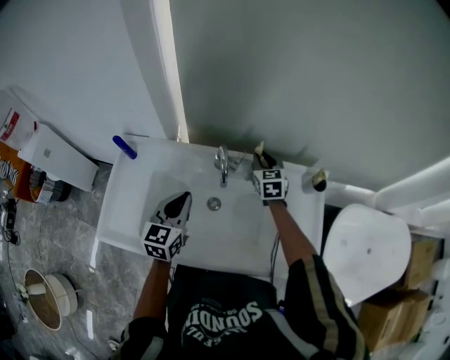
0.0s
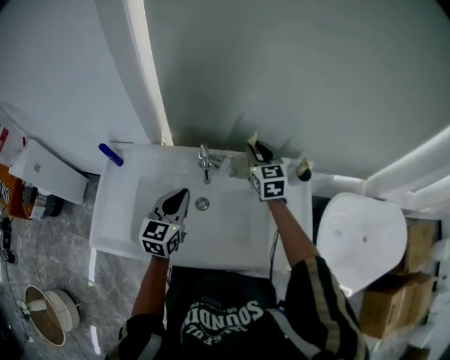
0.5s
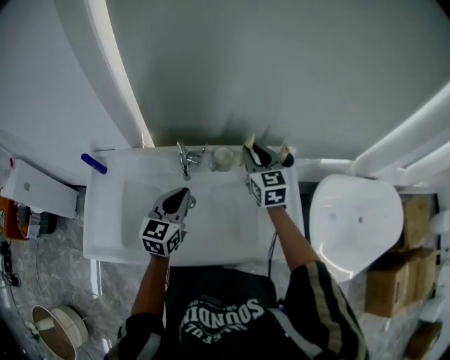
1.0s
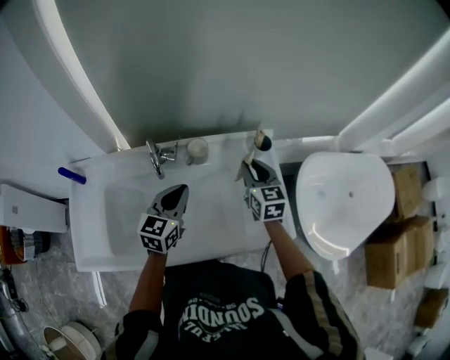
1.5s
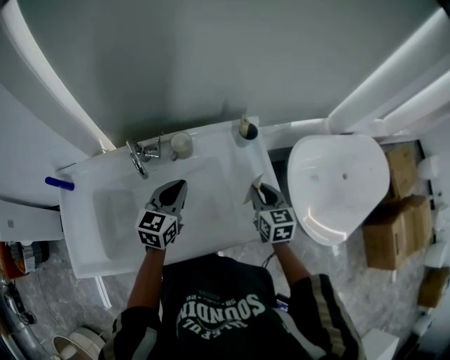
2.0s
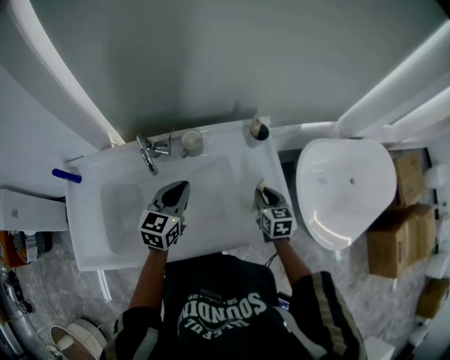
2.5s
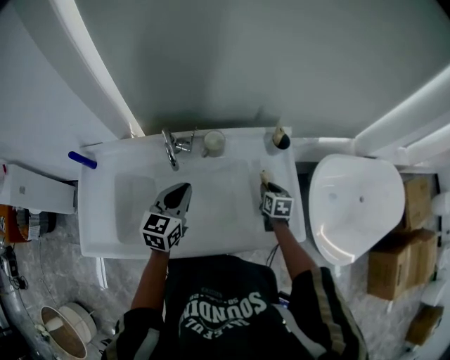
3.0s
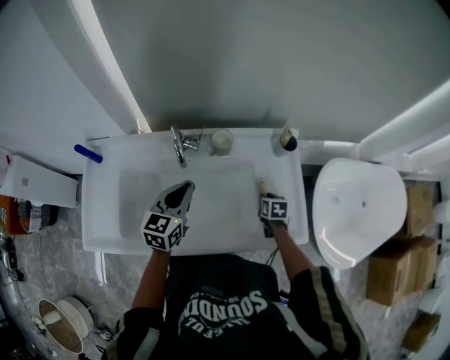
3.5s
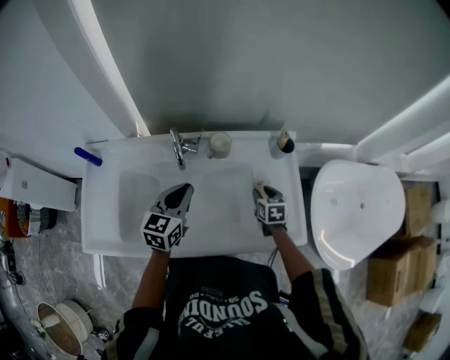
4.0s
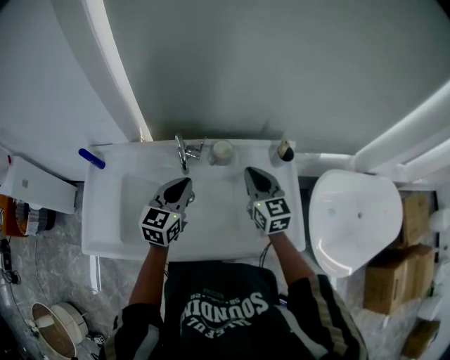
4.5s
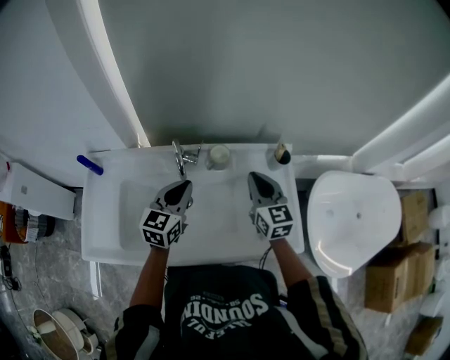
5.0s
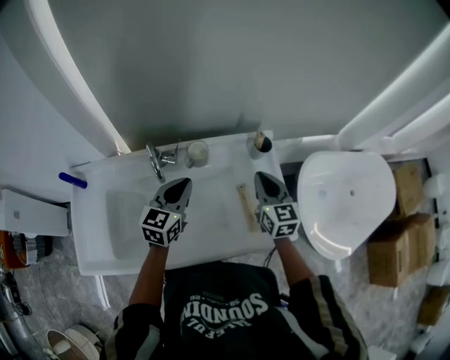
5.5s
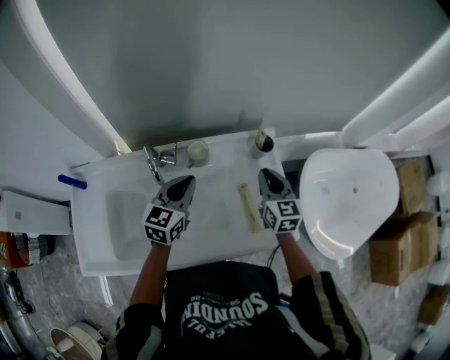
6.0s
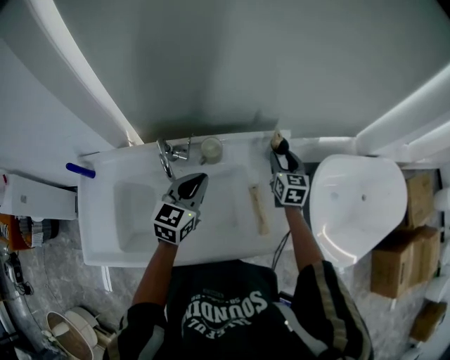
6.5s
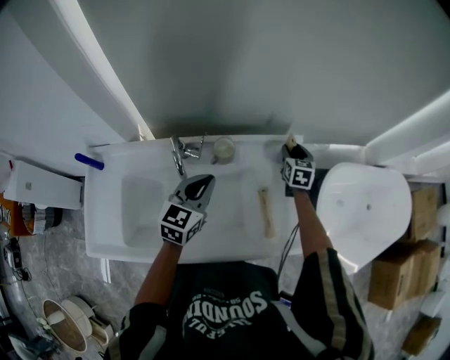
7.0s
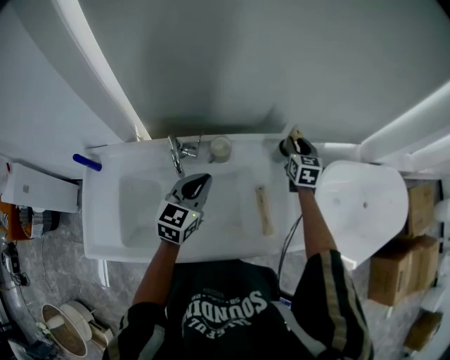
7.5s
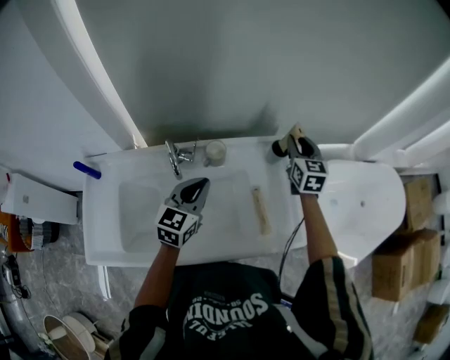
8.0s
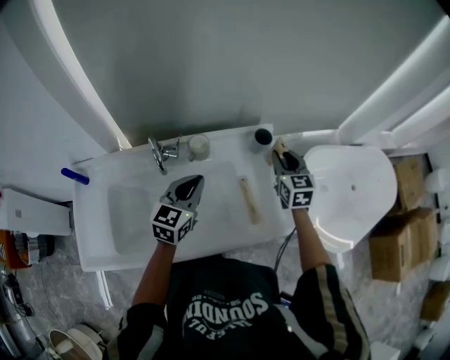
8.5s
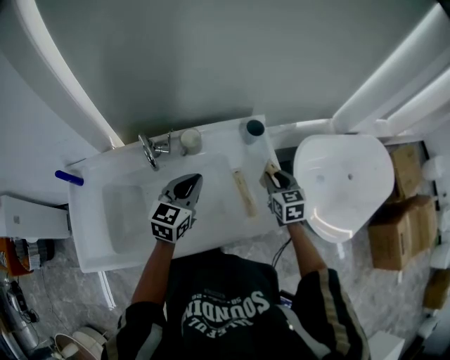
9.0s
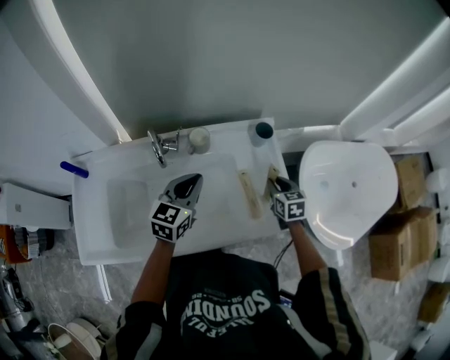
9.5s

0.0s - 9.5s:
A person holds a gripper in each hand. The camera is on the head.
0.0s - 2.0s: The right gripper shifts roughly 35 cm to the right and backward, and turns by about 20 degrees. The left gripper heads to the right, covering some 20 cm, and swivels roughly 30 degrees.
2.0s - 4.0s: The left gripper shifts some 10 cm to the left; the right gripper travels downward and to the left by about 15 cm.
4.0s - 5.5s: The left gripper goes approximately 5 cm to the right; the right gripper is displaced upward by approximately 20 cm, points its fingers roughly 30 degrees further upward, and closes.
5.5s - 7.5s: The right gripper shifts about 20 cm forward, and opens up.
7.5s - 9.5s: The right gripper heads backward and downward, covering approximately 20 cm.

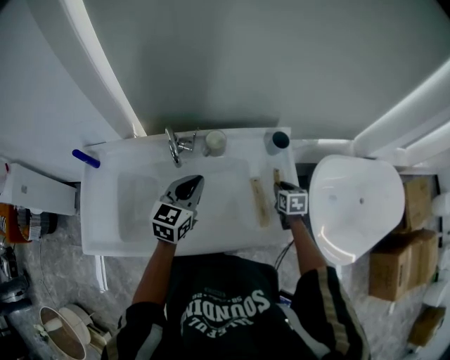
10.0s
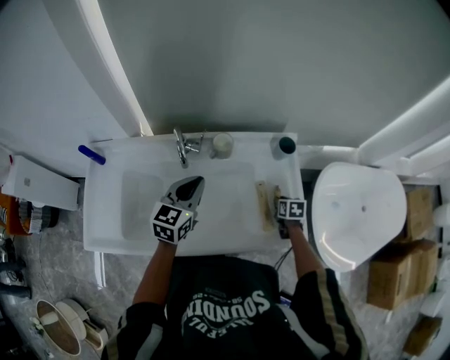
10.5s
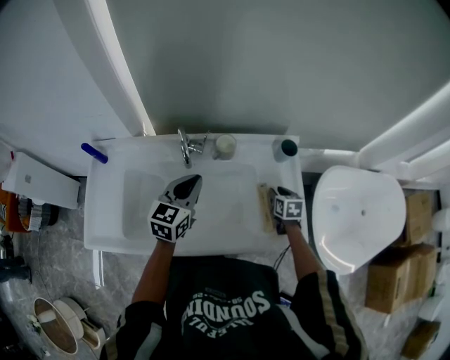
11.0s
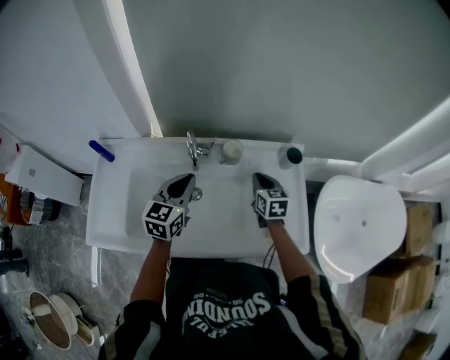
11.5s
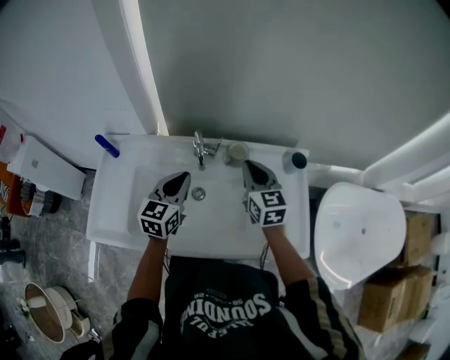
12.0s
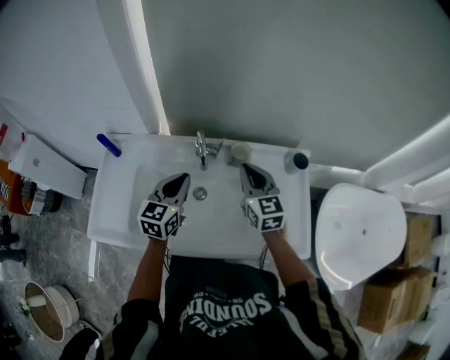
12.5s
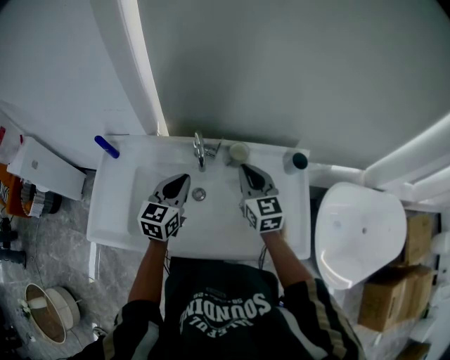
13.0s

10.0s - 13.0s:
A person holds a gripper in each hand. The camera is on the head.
10.0s - 11.5s: The right gripper goes about 20 cm to the left and upward. The left gripper shifts roughly 10 cm to the left.
11.5s - 13.0s: The right gripper goes approximately 15 cm upward and to the left, and rotates roughly 20 degrees.

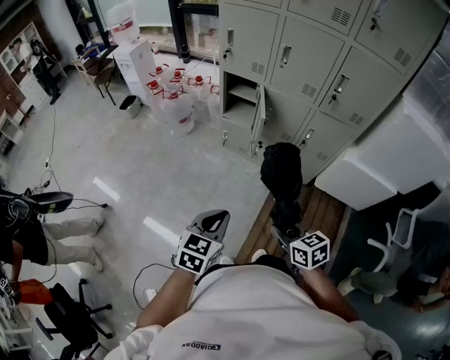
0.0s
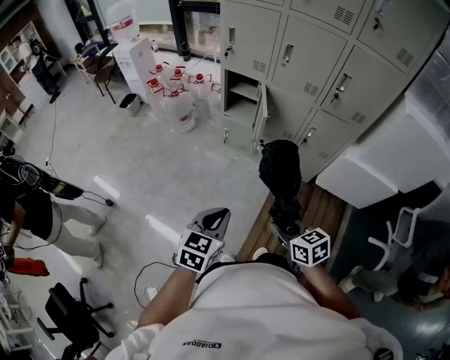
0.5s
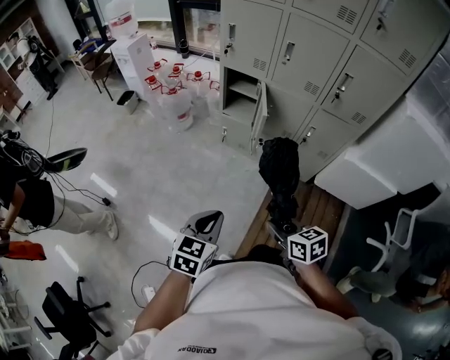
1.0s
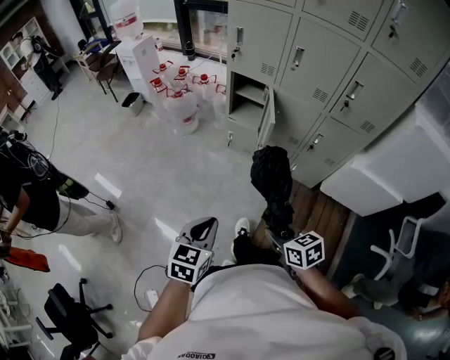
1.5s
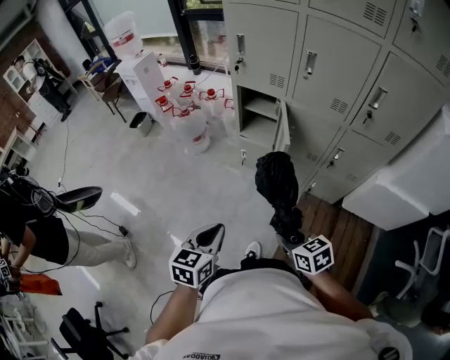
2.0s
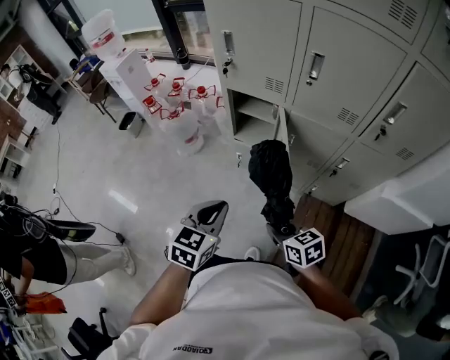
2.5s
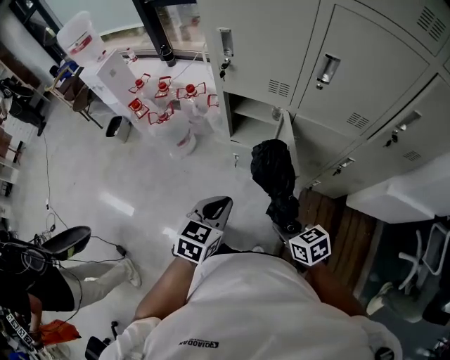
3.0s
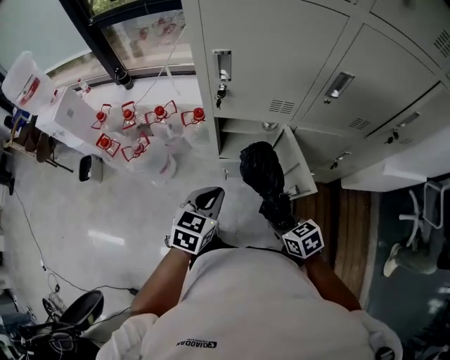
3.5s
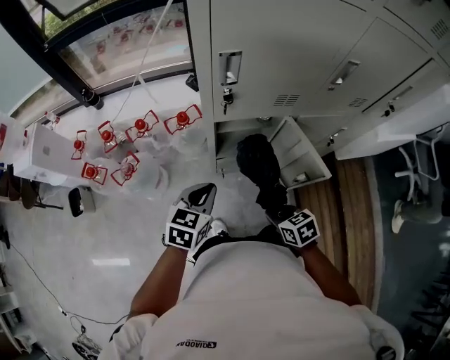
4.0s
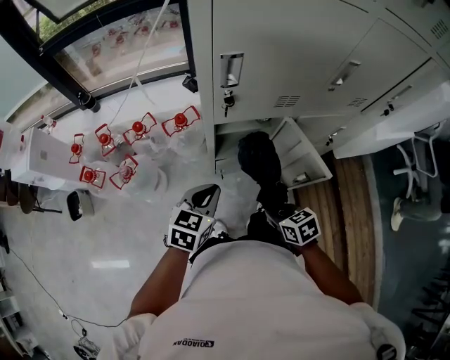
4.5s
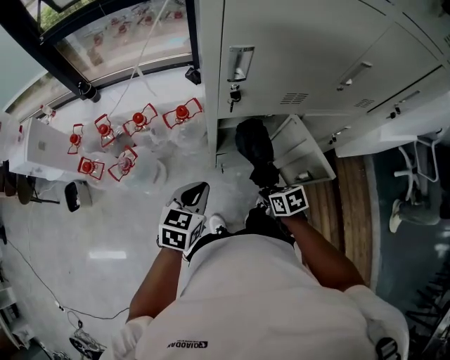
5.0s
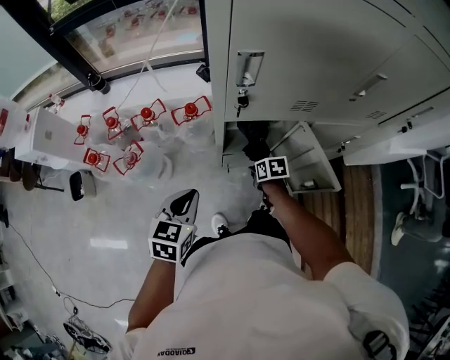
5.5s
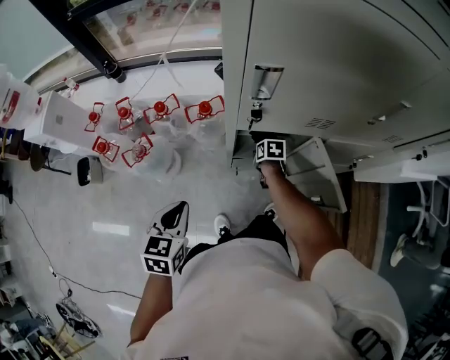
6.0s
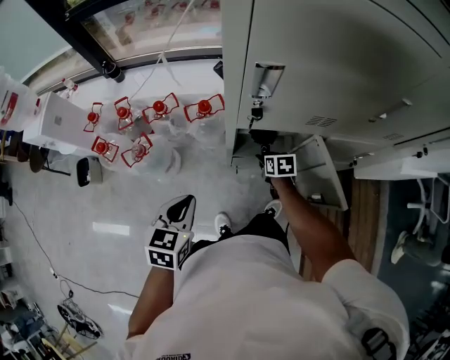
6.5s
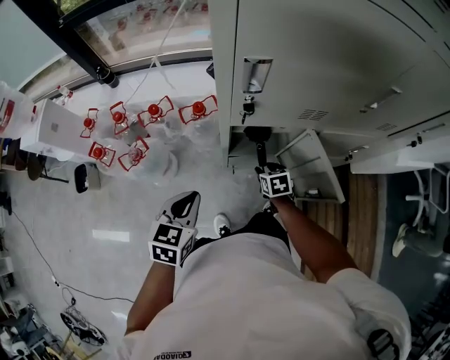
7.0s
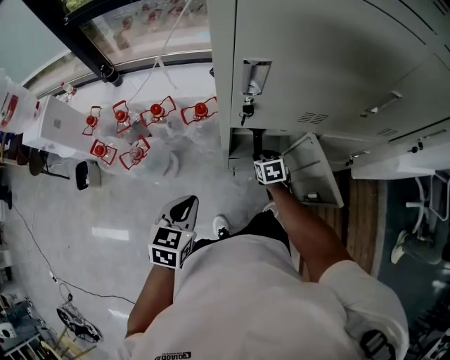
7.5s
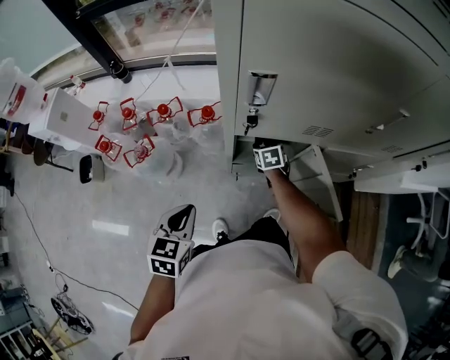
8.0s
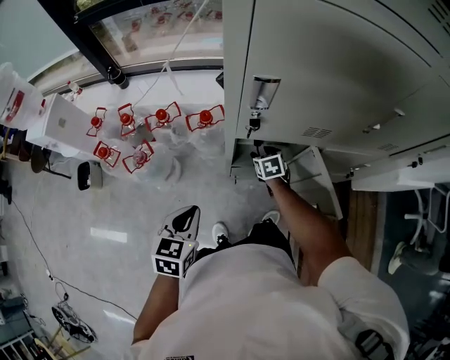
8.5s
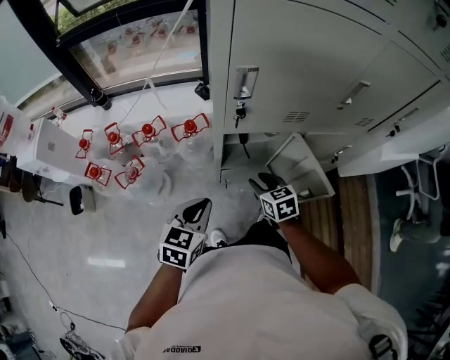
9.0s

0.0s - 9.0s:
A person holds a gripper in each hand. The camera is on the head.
0.0s - 2.0s: The grippers both shift forward and downward by roughly 20 cm.
2.0s - 4.5s: The pair of grippers is taken about 50 cm. The left gripper turns by approximately 50 degrees. Meanwhile the right gripper rotates roughly 40 degrees.
4.5s - 7.0s: The left gripper goes some 5 cm to the left. The right gripper shifts about 25 cm forward and downward, and opens.
7.0s - 9.0s: The right gripper moves upward, about 15 cm, and travels forward and back again, about 15 cm each way.

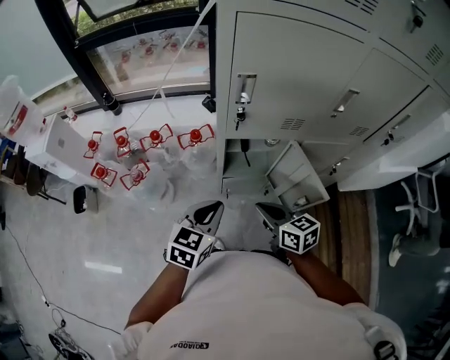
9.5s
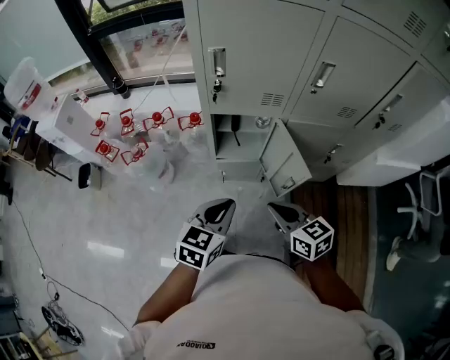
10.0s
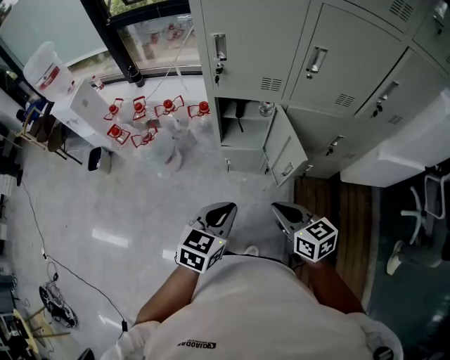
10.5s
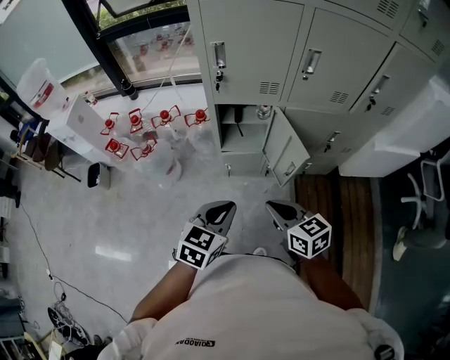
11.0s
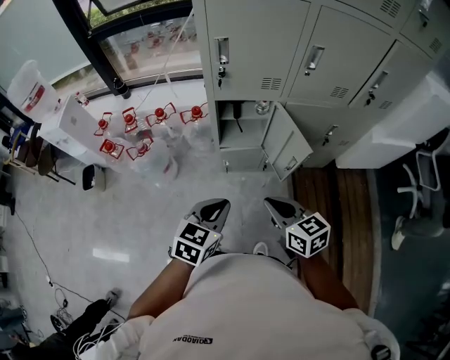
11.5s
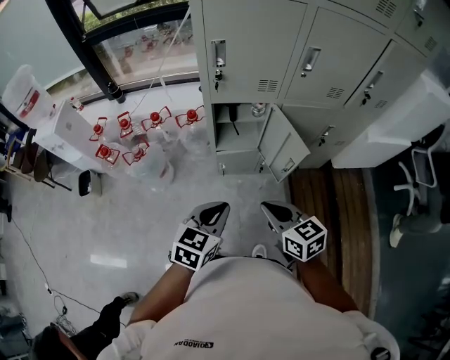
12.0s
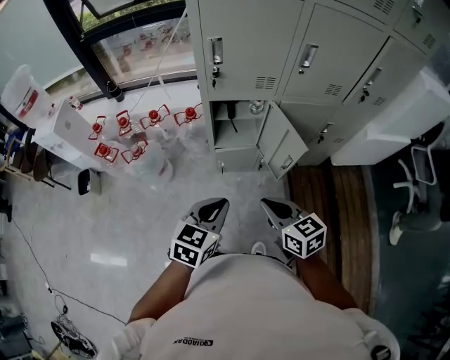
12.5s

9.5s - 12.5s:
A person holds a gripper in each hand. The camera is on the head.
9.5s - 11.0s: The two grippers go some 20 cm backward and to the right.
11.0s - 12.5s: The grippers move only a little.

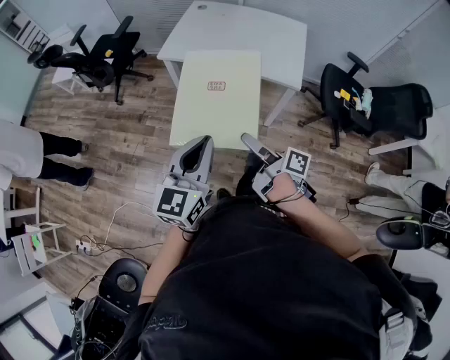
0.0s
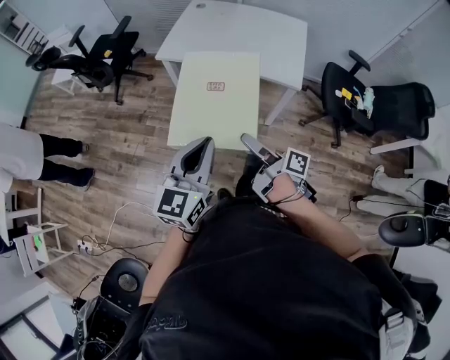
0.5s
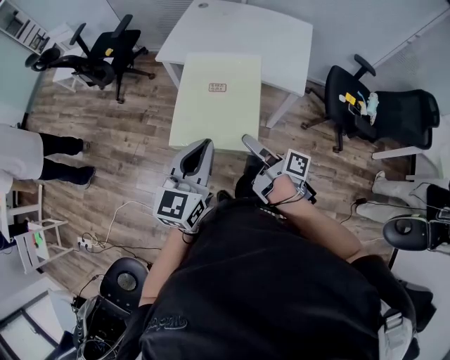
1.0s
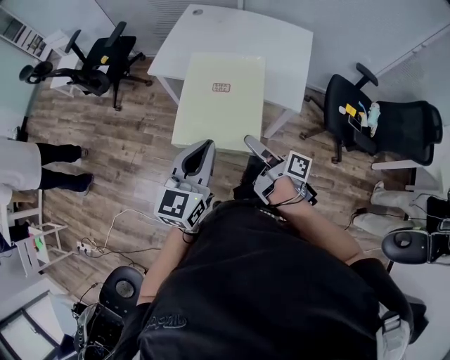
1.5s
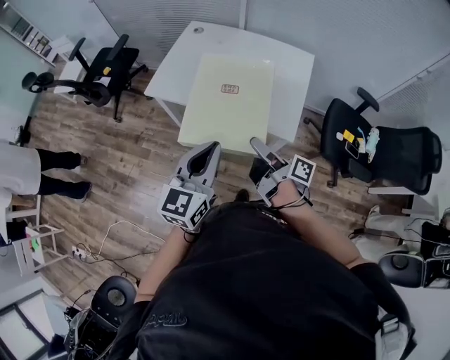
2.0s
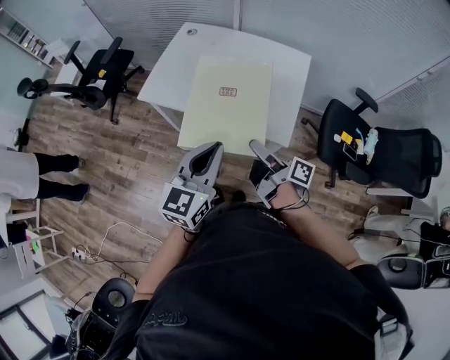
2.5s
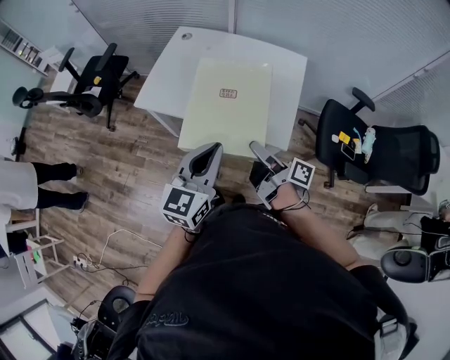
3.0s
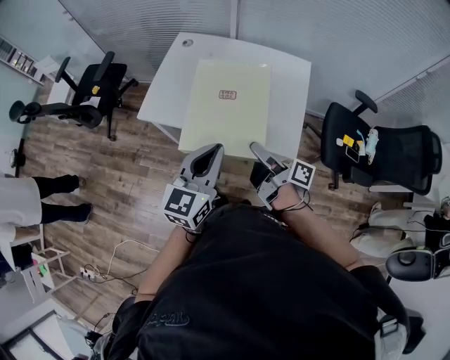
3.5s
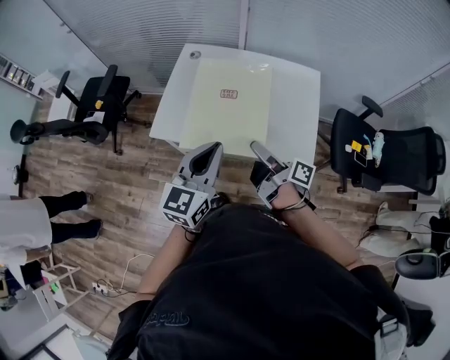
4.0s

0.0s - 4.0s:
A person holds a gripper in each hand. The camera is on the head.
0.0s - 2.0s: Both grippers travel together forward and to the right, some 25 cm.
2.0s - 4.0s: The right gripper is displaced forward and to the left by some 20 cm. Meanwhile the left gripper shifts some 20 cm forward.
